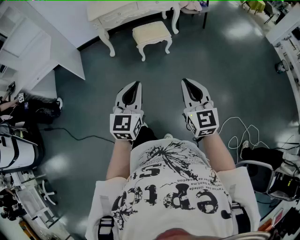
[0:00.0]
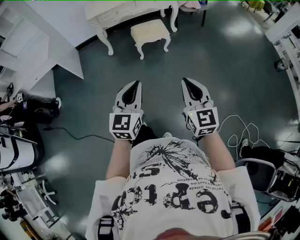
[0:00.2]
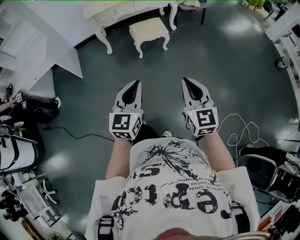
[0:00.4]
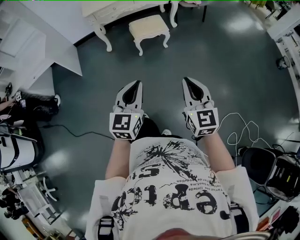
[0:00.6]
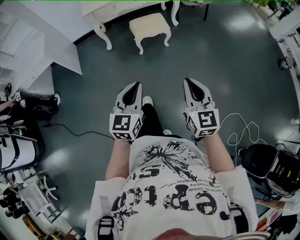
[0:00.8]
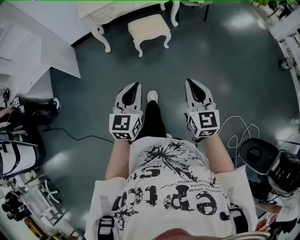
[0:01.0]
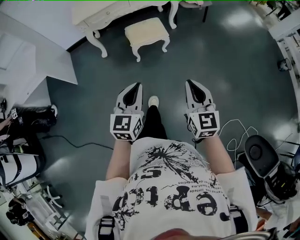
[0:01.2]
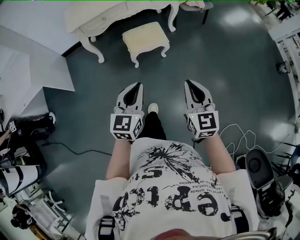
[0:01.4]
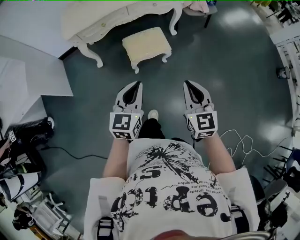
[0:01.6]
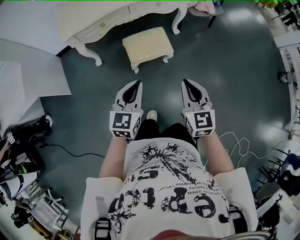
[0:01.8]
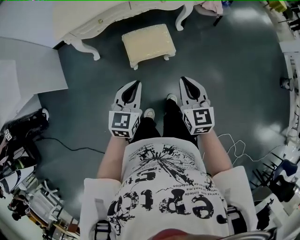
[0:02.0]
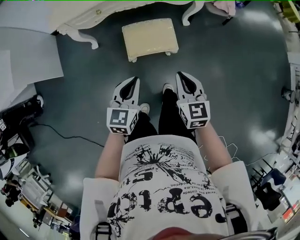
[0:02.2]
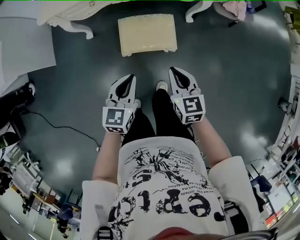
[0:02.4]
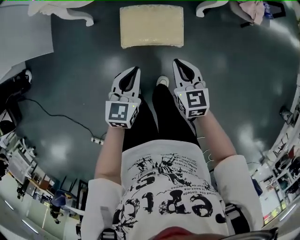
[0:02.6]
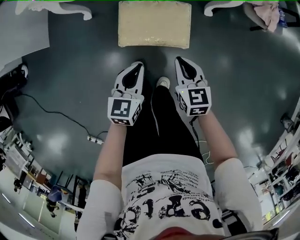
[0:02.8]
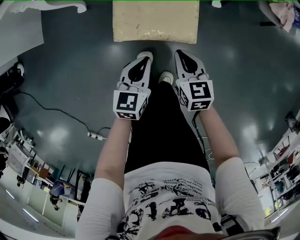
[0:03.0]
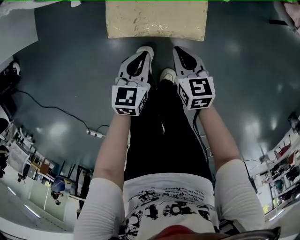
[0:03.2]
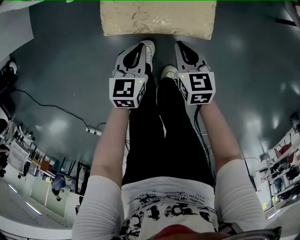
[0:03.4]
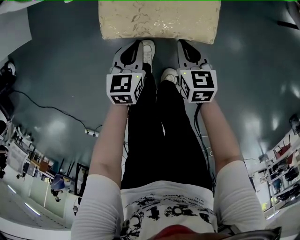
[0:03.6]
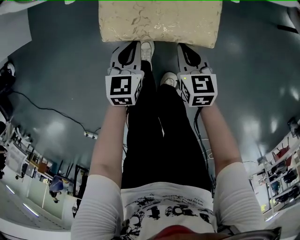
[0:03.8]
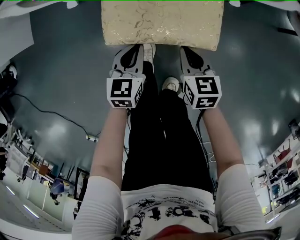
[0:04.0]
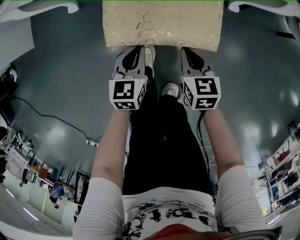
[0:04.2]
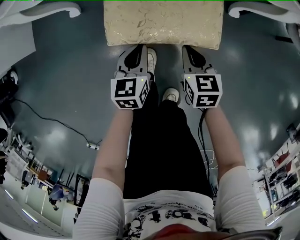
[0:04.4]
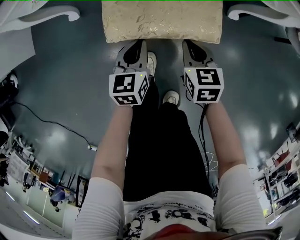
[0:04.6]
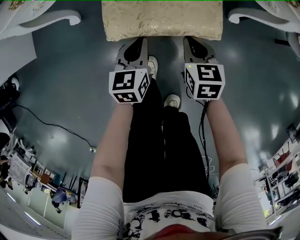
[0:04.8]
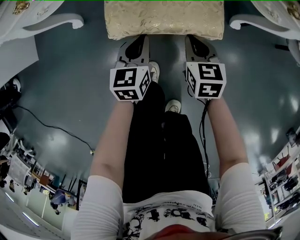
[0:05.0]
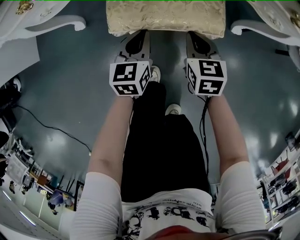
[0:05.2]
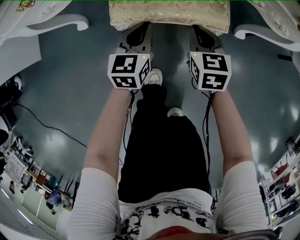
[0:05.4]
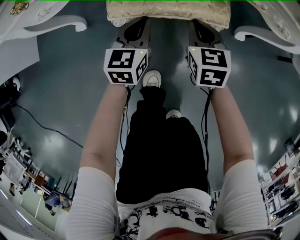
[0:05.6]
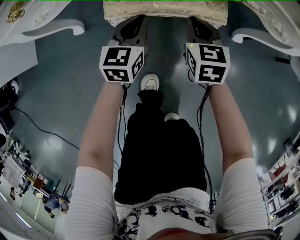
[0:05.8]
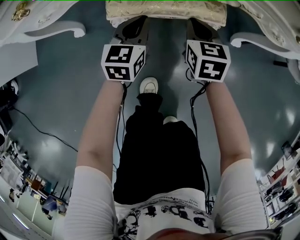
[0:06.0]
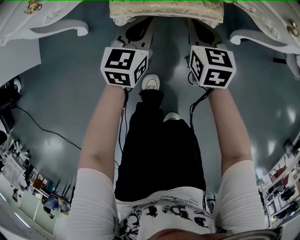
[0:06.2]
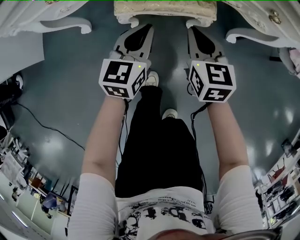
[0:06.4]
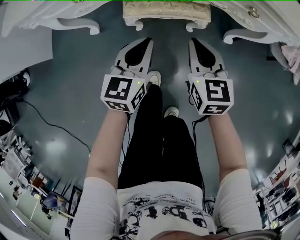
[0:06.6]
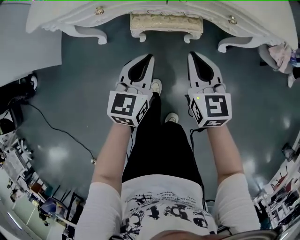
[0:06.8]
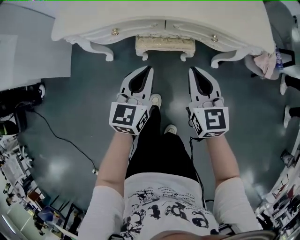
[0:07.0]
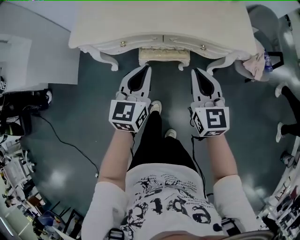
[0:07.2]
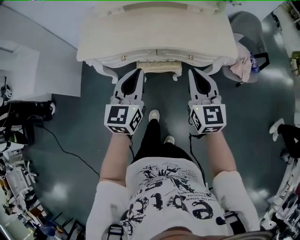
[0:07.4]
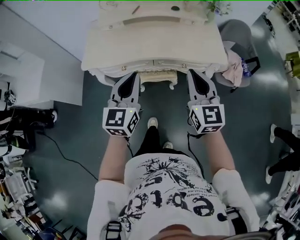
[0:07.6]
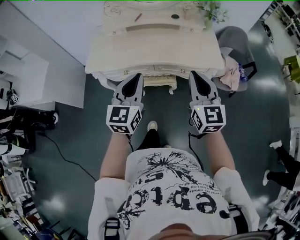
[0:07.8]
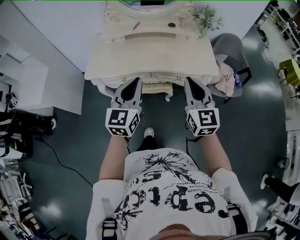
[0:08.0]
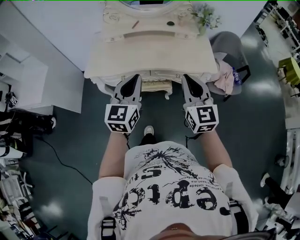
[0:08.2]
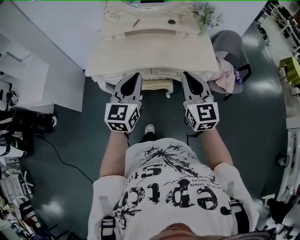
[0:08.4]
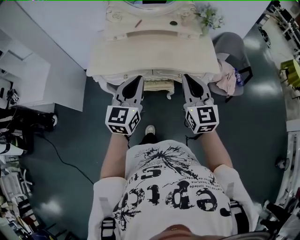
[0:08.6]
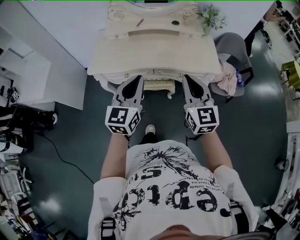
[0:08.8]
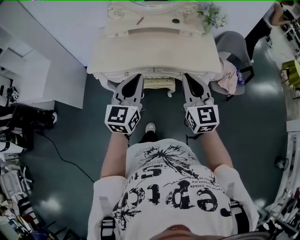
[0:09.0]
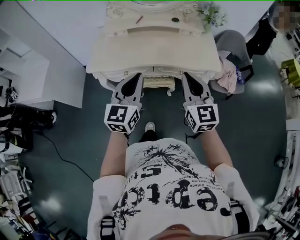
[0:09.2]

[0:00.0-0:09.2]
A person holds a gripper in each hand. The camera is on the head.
0:00.0 to 0:01.6: The grippers both shift forward by some 40 cm.
0:01.6 to 0:03.0: Both grippers move downward and forward, approximately 50 cm. The right gripper changes its angle by some 40 degrees. Meanwhile the left gripper turns by some 30 degrees.
0:03.0 to 0:04.6: The left gripper goes approximately 20 cm forward and downward; the right gripper shifts approximately 20 cm downward and forward.
0:04.6 to 0:06.2: The grippers both shift forward by approximately 15 cm.
0:06.2 to 0:07.6: The grippers both shift upward by roughly 60 cm. The right gripper tilts its fingers some 30 degrees upward. Meanwhile the left gripper turns by approximately 20 degrees.
0:07.6 to 0:09.2: The left gripper ends up roughly 5 cm from where it was.

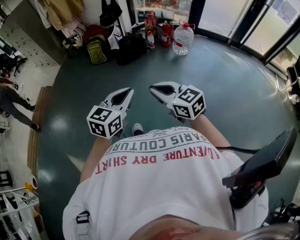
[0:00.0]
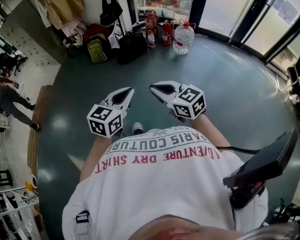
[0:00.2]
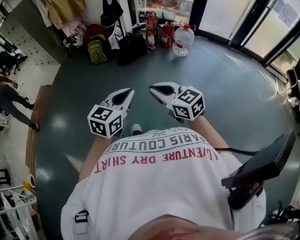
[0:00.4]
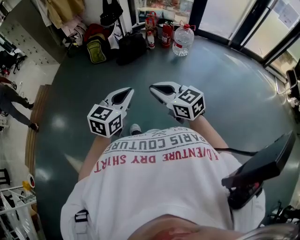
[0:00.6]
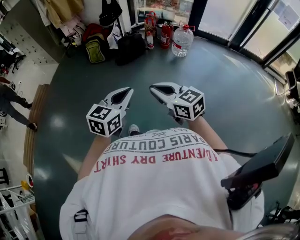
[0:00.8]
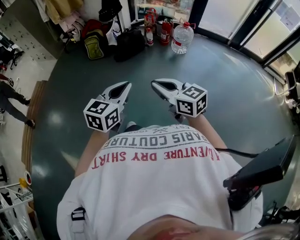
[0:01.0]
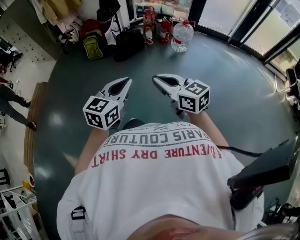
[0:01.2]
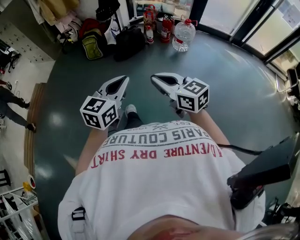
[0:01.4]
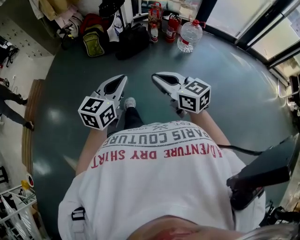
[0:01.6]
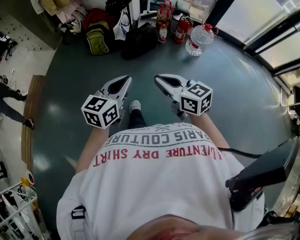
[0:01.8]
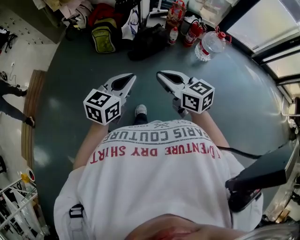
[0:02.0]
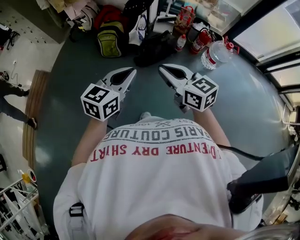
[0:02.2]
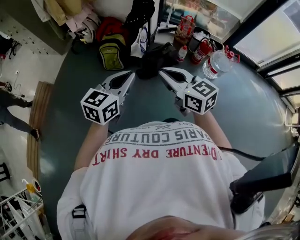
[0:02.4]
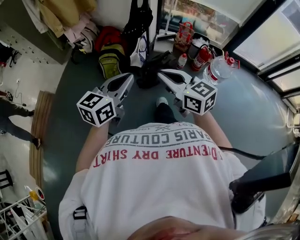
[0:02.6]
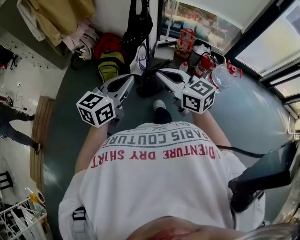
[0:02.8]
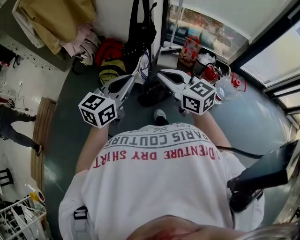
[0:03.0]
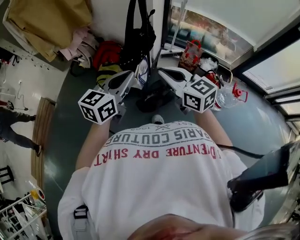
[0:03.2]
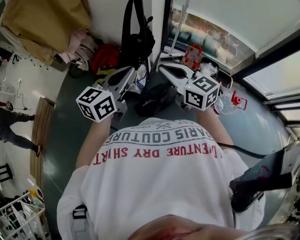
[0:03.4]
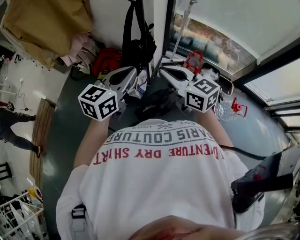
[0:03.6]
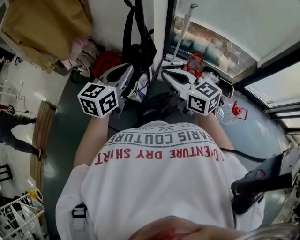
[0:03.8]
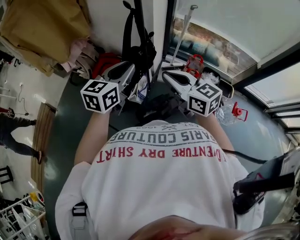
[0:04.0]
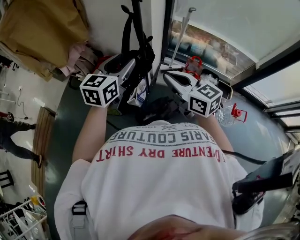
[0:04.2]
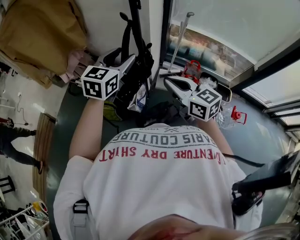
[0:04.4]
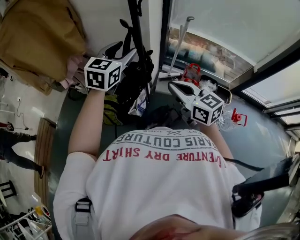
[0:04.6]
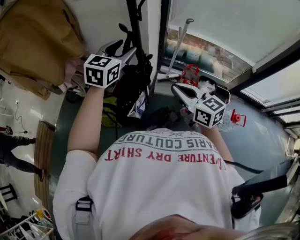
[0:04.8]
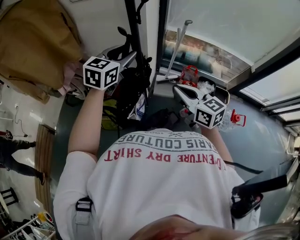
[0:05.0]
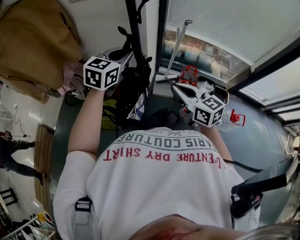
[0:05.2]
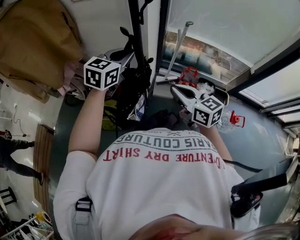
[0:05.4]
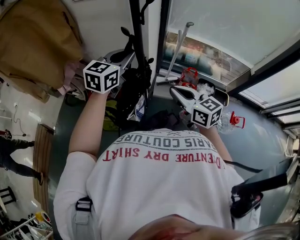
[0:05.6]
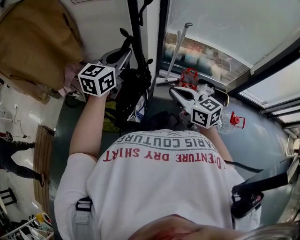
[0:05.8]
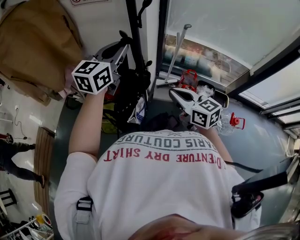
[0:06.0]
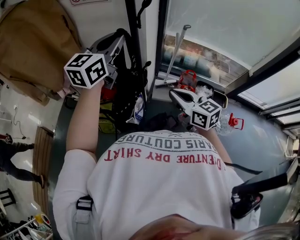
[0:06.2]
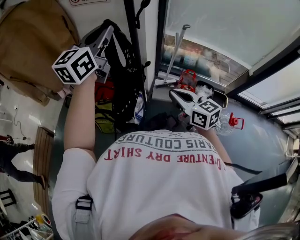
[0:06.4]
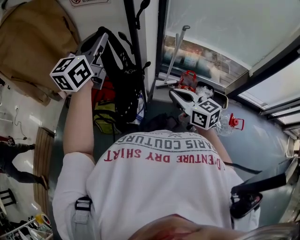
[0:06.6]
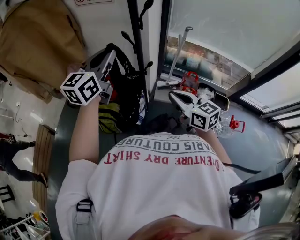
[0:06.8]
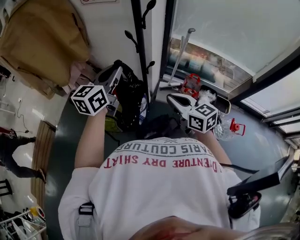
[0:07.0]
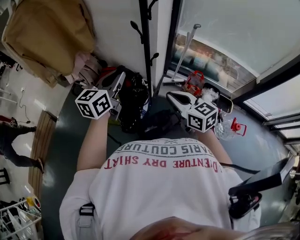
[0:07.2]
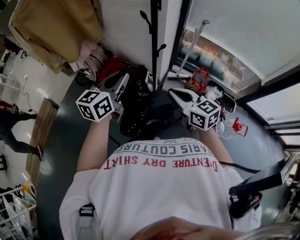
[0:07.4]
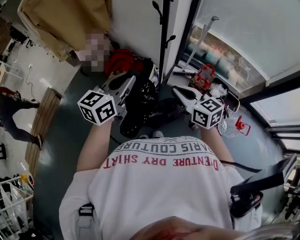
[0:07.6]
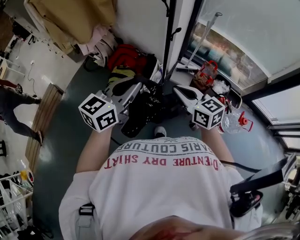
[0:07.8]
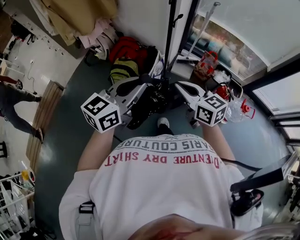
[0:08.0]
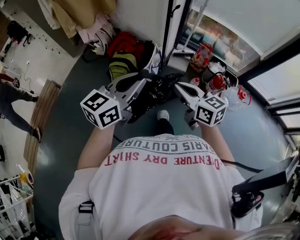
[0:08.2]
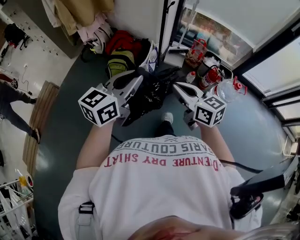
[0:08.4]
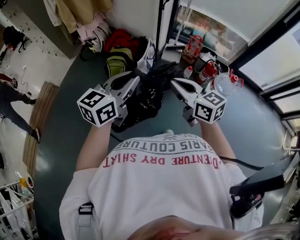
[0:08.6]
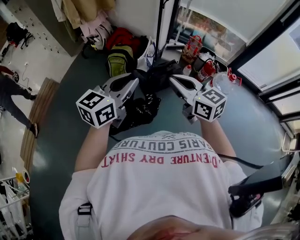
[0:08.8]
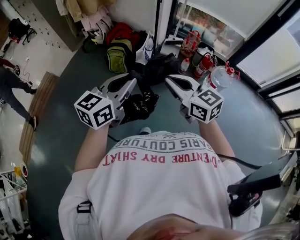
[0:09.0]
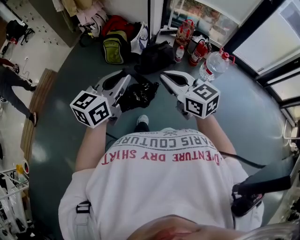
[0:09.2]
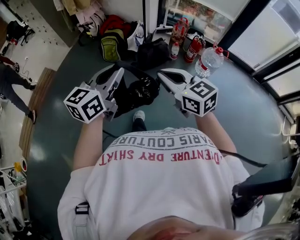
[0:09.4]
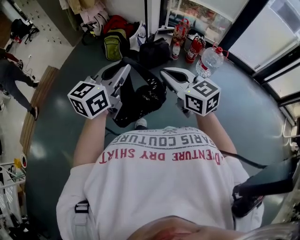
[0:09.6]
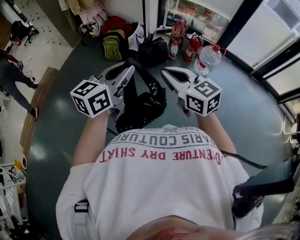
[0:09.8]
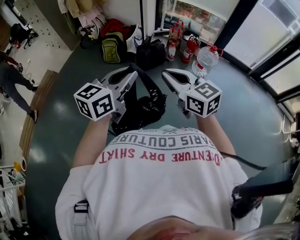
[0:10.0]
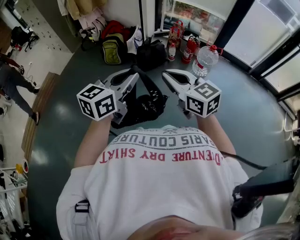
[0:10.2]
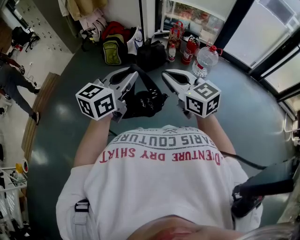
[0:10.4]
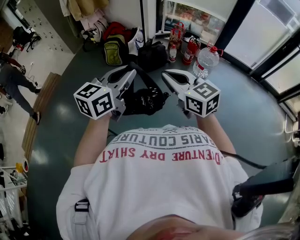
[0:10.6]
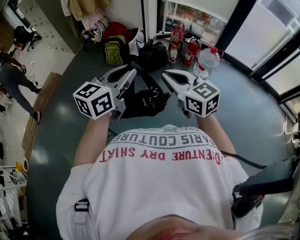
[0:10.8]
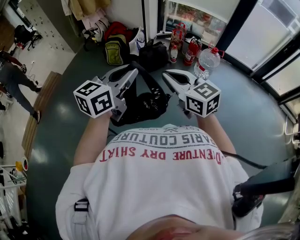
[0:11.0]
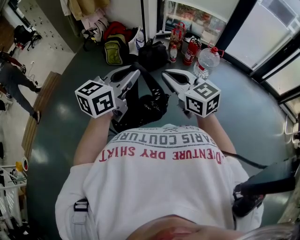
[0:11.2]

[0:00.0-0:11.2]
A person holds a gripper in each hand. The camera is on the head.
0:00.0 to 0:01.6: Both grippers move forward, approximately 20 cm.
0:01.6 to 0:03.2: The pair of grippers is taken forward, roughly 80 cm.
0:03.2 to 0:04.8: The right gripper travels forward and to the right by approximately 20 cm; the left gripper travels forward by approximately 35 cm, swivels about 20 degrees, and opens.
0:04.8 to 0:06.4: The left gripper heads upward, covering about 15 cm, swivels about 20 degrees, and closes its fingers.
0:06.4 to 0:08.0: The left gripper is displaced backward and downward by about 50 cm. The right gripper travels backward and to the left by roughly 25 cm.
0:08.0 to 0:09.6: The two grippers travel together, backward, approximately 60 cm.
0:09.6 to 0:11.2: The grippers both shift backward by roughly 10 cm.

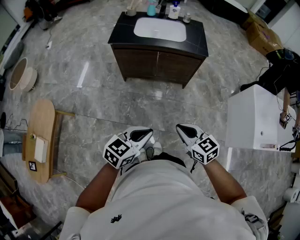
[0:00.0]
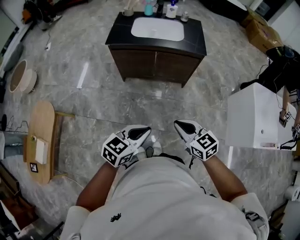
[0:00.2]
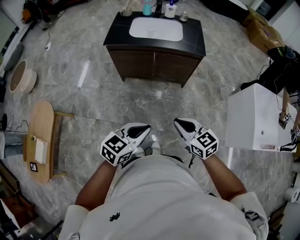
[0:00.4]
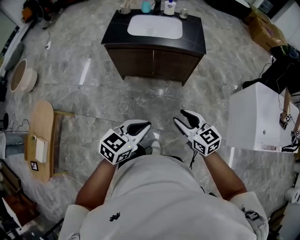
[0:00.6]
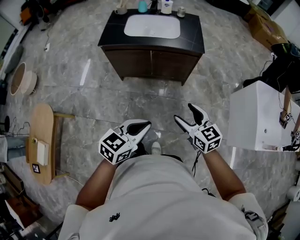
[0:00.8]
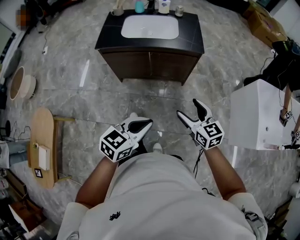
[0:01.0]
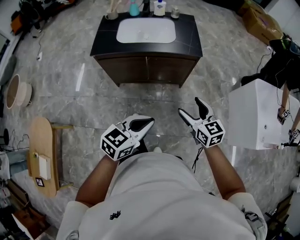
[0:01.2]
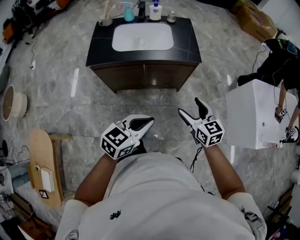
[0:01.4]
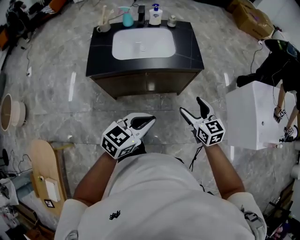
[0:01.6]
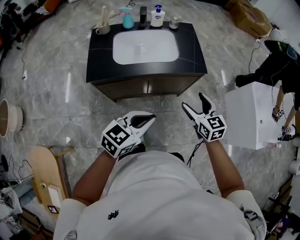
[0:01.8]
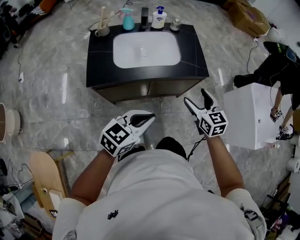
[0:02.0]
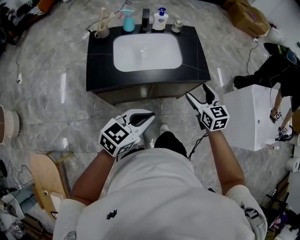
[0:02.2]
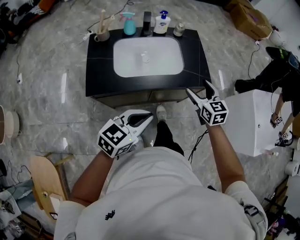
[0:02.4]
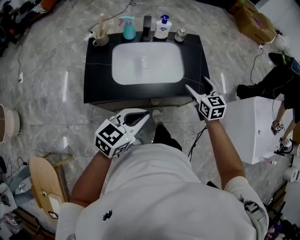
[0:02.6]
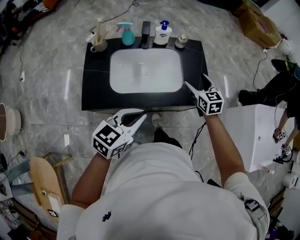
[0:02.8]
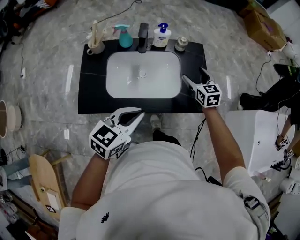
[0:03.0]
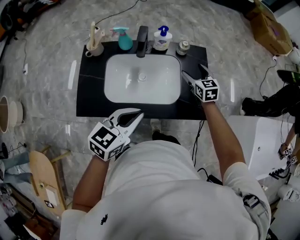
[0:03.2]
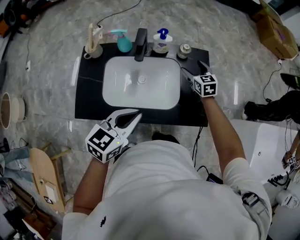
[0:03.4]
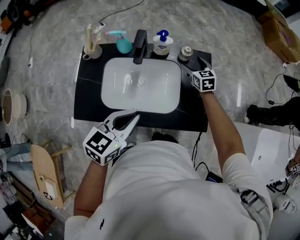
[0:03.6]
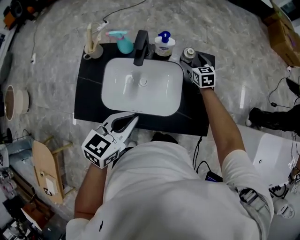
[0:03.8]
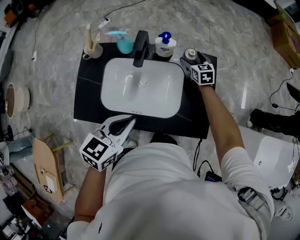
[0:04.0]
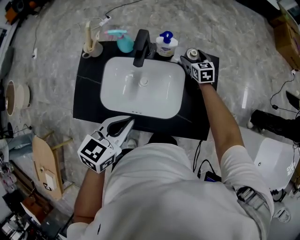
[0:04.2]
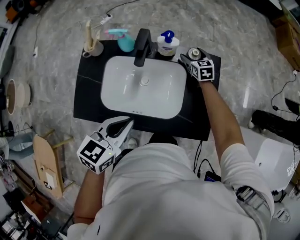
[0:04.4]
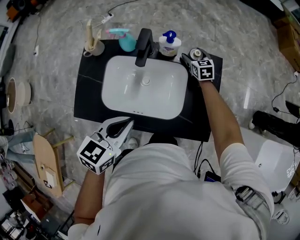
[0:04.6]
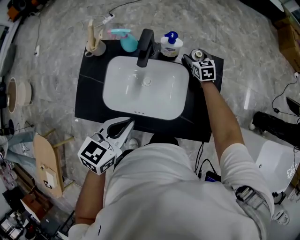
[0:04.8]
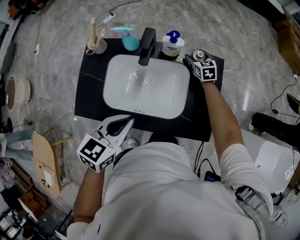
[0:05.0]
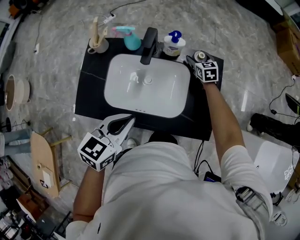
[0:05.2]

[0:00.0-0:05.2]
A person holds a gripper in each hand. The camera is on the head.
0:00.0 to 0:01.8: The grippers both shift forward by about 40 cm. The right gripper turns by approximately 30 degrees, and opens up.
0:01.8 to 0:03.4: The right gripper shifts some 50 cm forward, while the left gripper travels forward by roughly 35 cm.
0:03.4 to 0:05.2: The right gripper heads forward and downward, covering about 15 cm.
